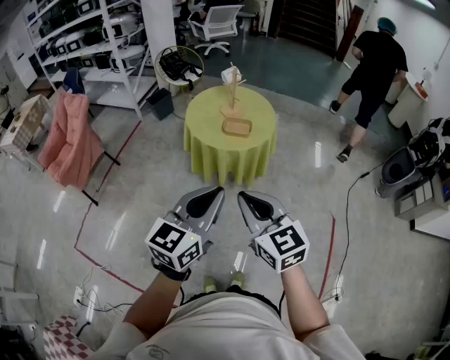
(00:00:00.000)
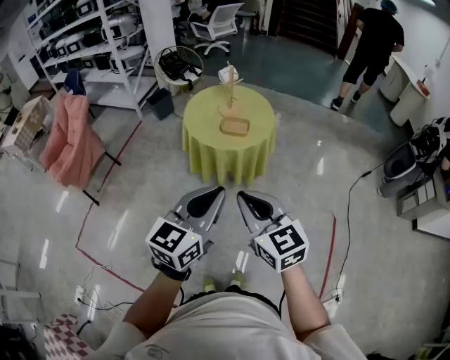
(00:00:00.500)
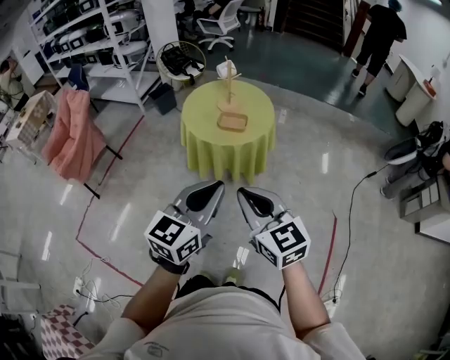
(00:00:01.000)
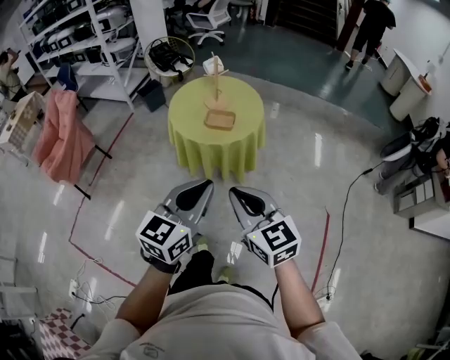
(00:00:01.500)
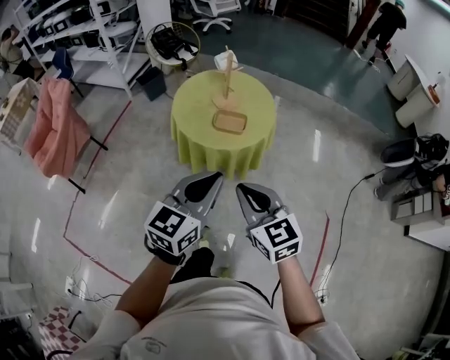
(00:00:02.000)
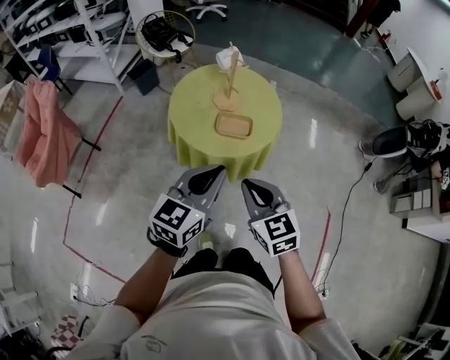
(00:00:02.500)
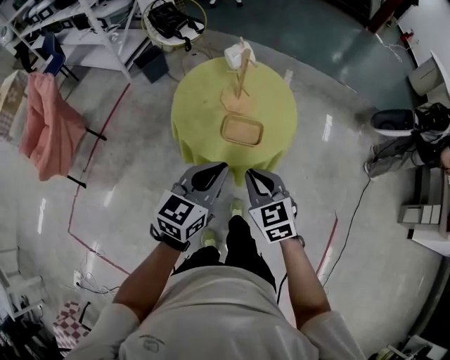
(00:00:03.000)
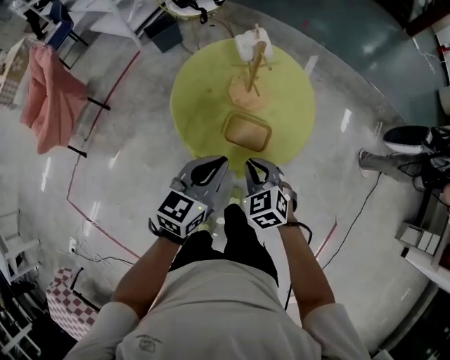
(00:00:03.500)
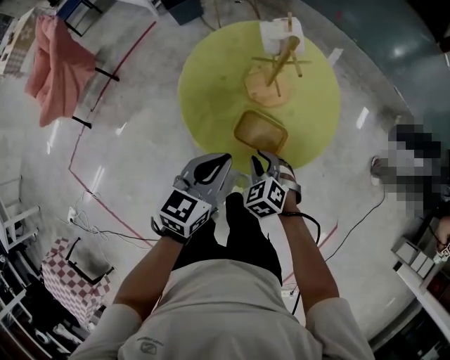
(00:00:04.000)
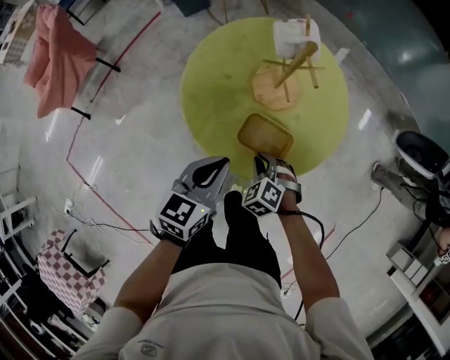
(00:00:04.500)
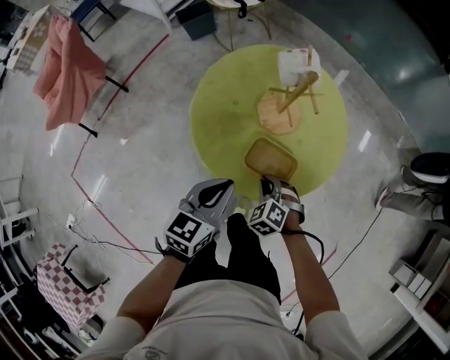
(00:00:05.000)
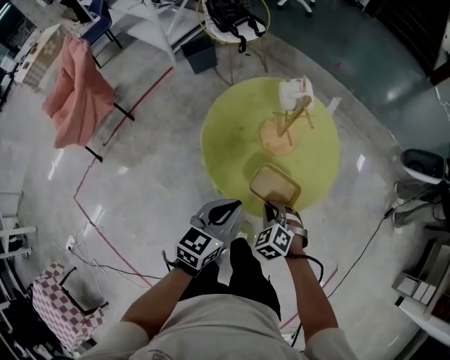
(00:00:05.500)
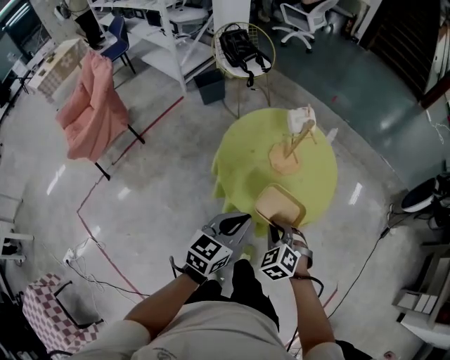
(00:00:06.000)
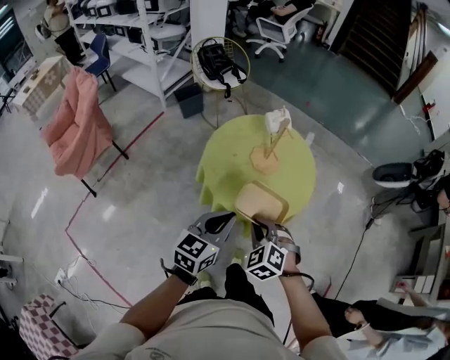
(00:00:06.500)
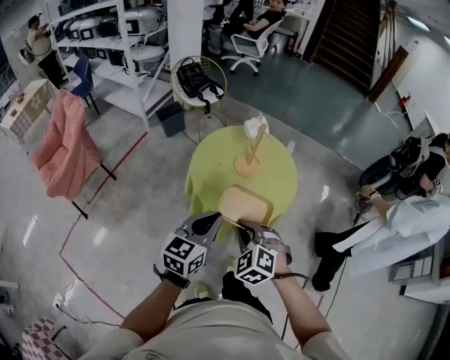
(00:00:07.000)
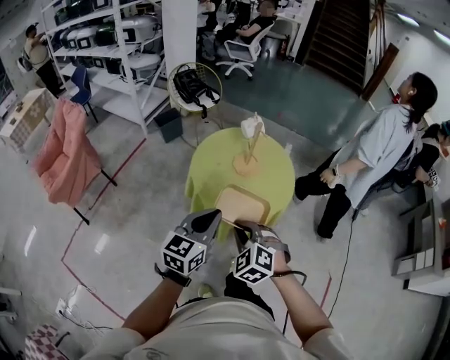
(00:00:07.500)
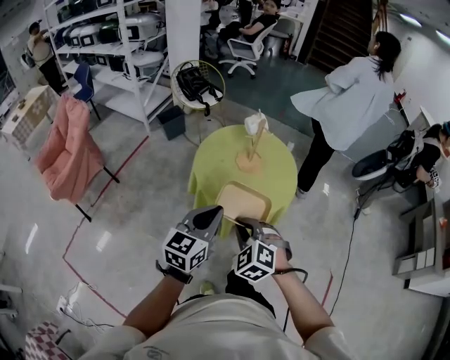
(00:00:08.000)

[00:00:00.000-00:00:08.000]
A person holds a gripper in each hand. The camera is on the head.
00:00:00.000 to 00:00:02.000: The left gripper shifts approximately 15 cm forward. Meanwhile the right gripper goes roughly 15 cm forward and downward.
00:00:02.000 to 00:00:04.000: The two grippers go approximately 40 cm forward and downward. The right gripper tips its fingers downward by approximately 40 degrees. Meanwhile the left gripper turns by about 20 degrees.
00:00:04.000 to 00:00:06.000: The left gripper shifts approximately 10 cm backward and upward. The right gripper moves upward and backward, approximately 15 cm.
00:00:06.000 to 00:00:08.000: The right gripper goes roughly 20 cm upward, backward and to the left. The left gripper goes about 15 cm upward and backward.

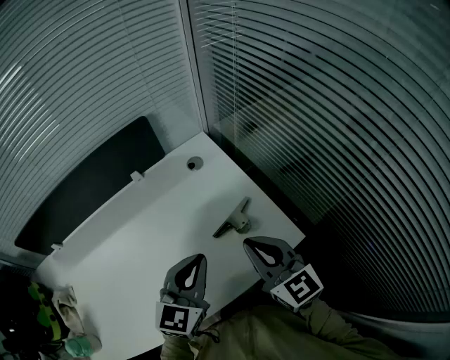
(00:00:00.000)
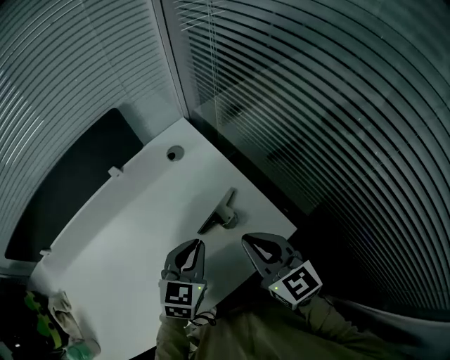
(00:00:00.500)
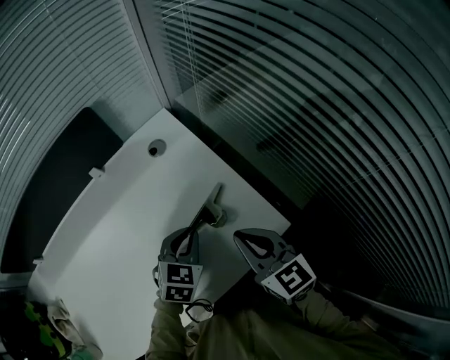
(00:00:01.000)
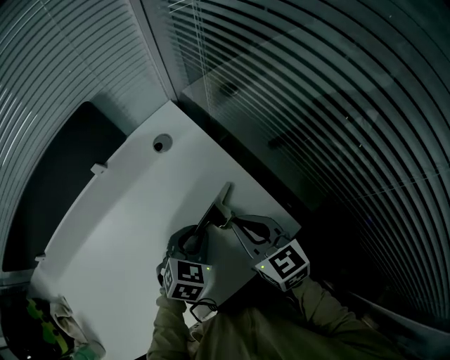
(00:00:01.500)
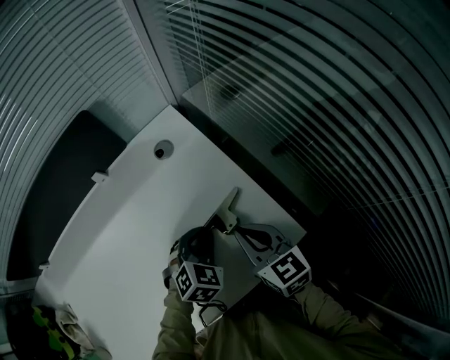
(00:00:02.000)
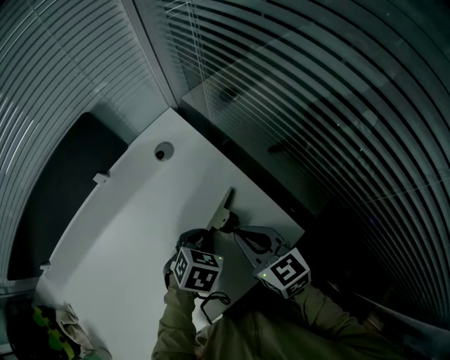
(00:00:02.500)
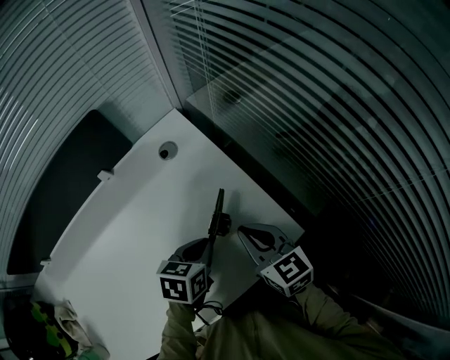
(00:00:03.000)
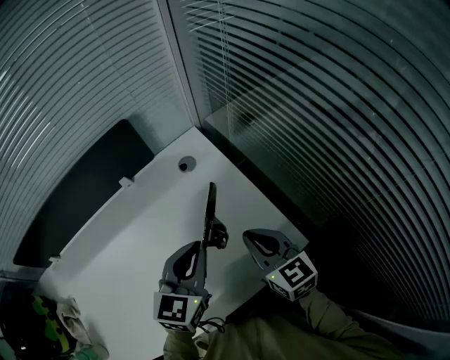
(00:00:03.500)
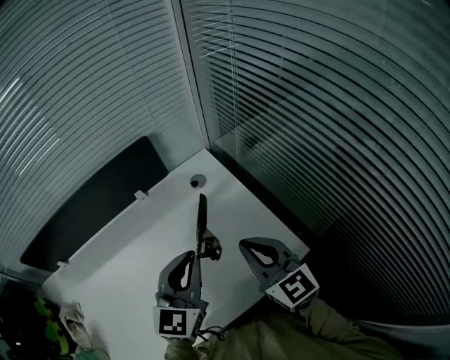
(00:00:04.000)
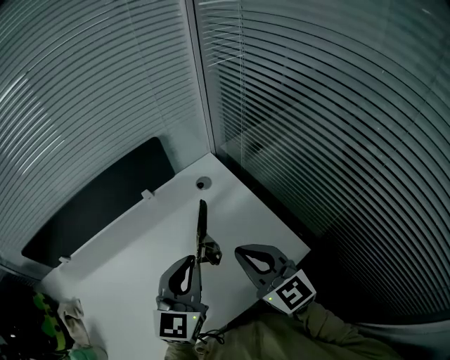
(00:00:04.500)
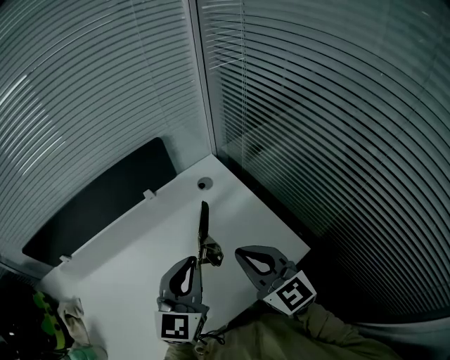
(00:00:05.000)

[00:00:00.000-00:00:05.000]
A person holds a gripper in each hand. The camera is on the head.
00:00:00.000 to 00:00:02.500: The grippers both shift downward and forward by approximately 20 cm. The left gripper points its fingers about 50 degrees further downward.
00:00:02.500 to 00:00:05.000: The right gripper travels upward, to the left and backward by some 20 cm, and rotates roughly 30 degrees. The left gripper shifts approximately 30 cm upward and to the left, and points its fingers about 60 degrees further upward.

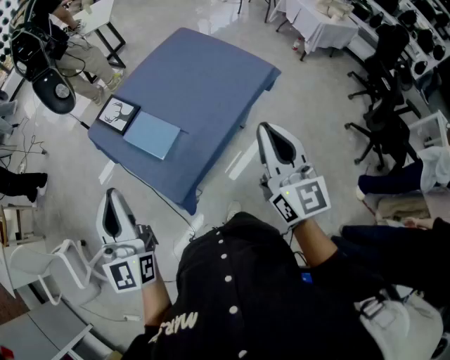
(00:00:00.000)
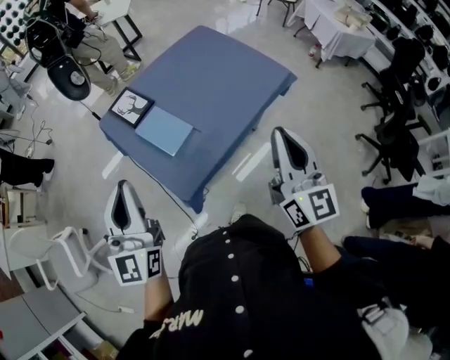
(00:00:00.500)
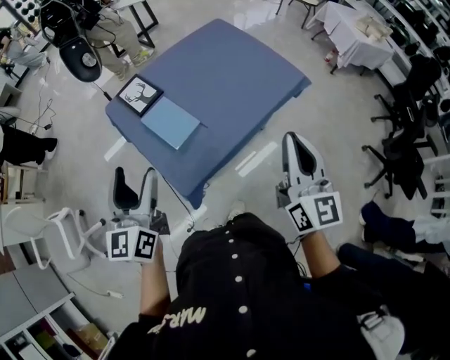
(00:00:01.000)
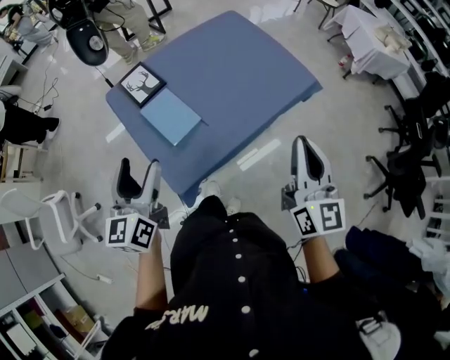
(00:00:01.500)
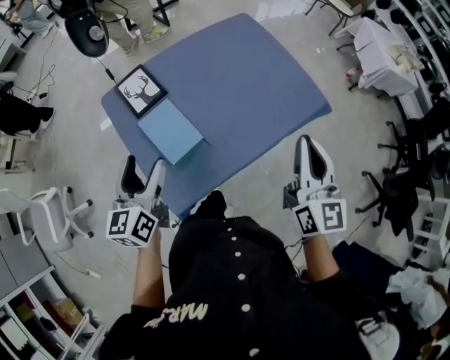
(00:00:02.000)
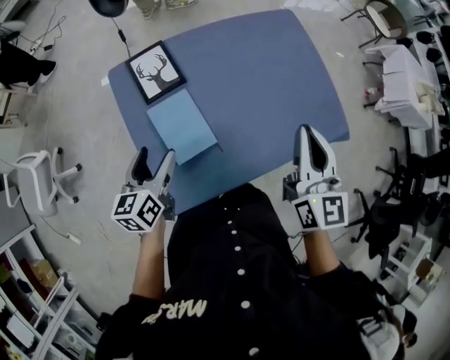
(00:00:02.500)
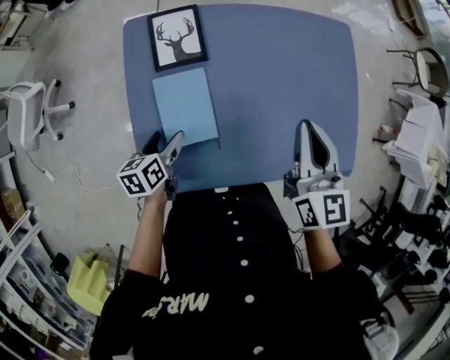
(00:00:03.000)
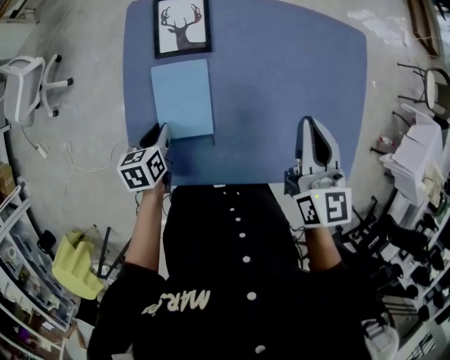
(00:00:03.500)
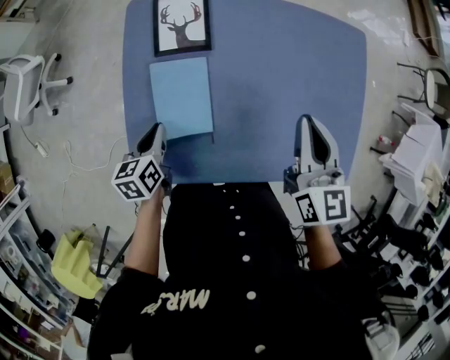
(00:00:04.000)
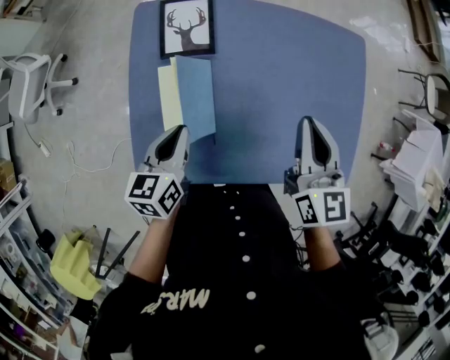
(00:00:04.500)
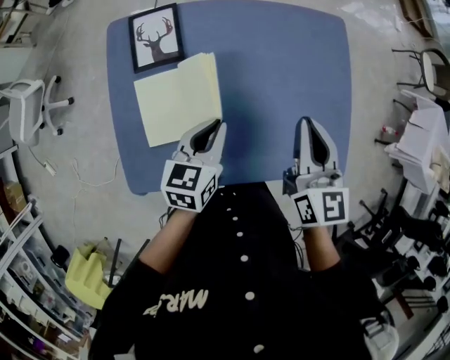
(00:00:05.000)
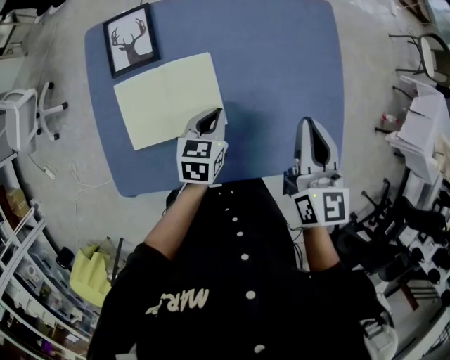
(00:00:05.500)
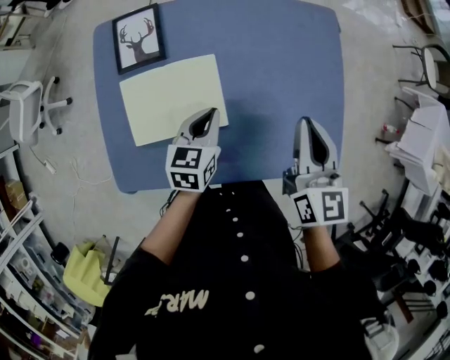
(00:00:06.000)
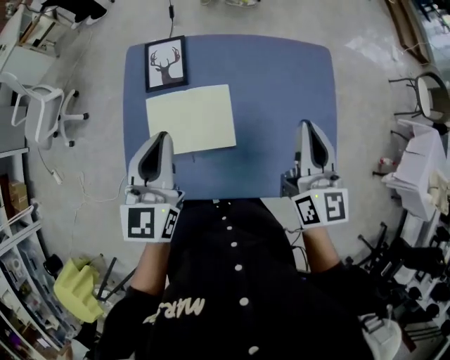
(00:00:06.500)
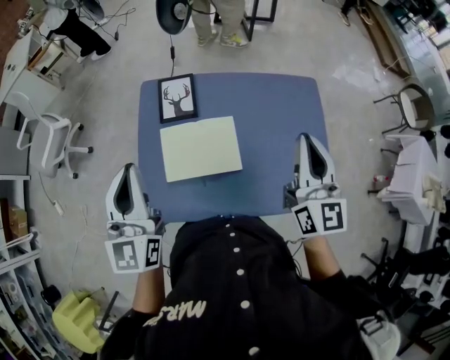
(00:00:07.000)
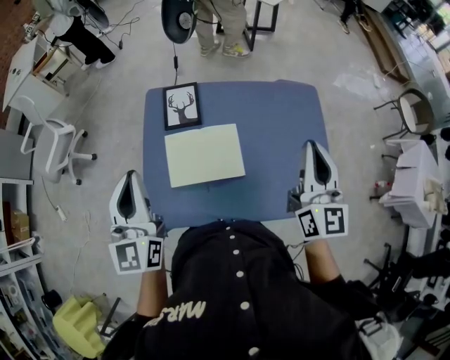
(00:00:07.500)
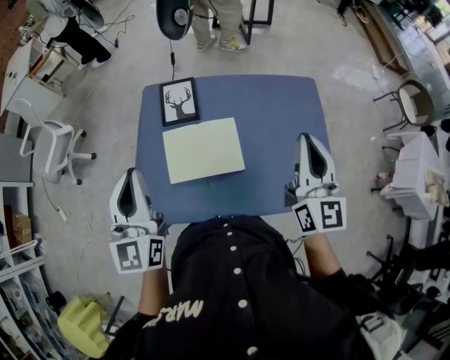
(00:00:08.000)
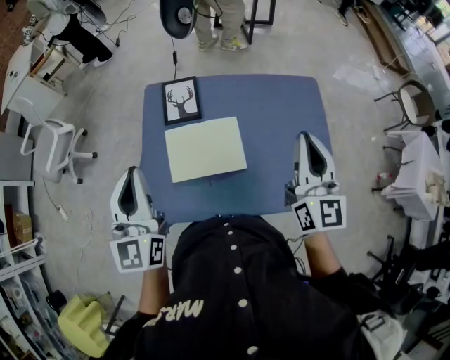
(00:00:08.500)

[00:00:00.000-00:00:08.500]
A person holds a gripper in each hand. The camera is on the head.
00:00:00.000 to 00:00:02.000: The right gripper is displaced forward by approximately 20 cm; the left gripper shifts approximately 25 cm forward and downward, rotates approximately 30 degrees, and opens.
00:00:02.000 to 00:00:04.000: The left gripper shifts about 25 cm downward, angles its fingers downward, by about 30 degrees, and closes. The right gripper shifts by some 35 cm, and swivels some 40 degrees.
00:00:04.000 to 00:00:06.500: The left gripper moves upward and to the right, some 30 cm, and angles its fingers upward, by roughly 30 degrees; the right gripper goes about 15 cm to the right and upward.
00:00:06.500 to 00:00:08.500: The left gripper is displaced to the left, upward and backward by about 20 cm, while the right gripper shifts about 10 cm upward and to the left.

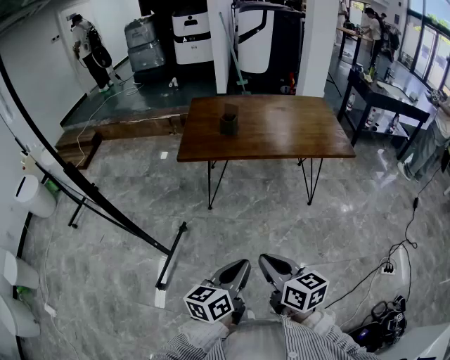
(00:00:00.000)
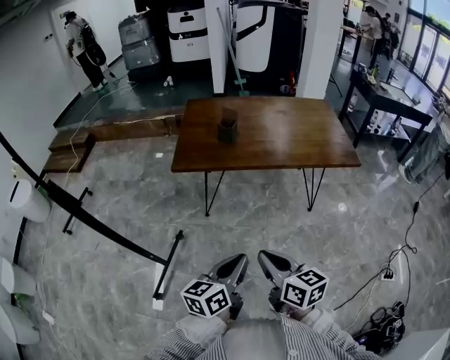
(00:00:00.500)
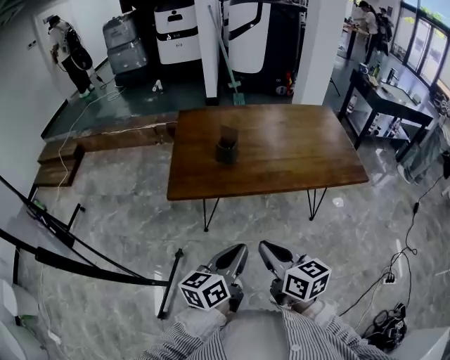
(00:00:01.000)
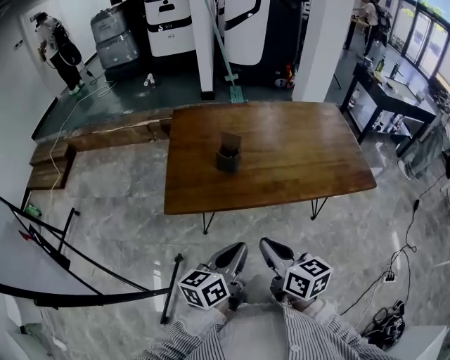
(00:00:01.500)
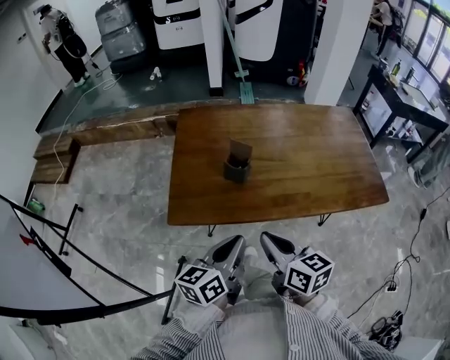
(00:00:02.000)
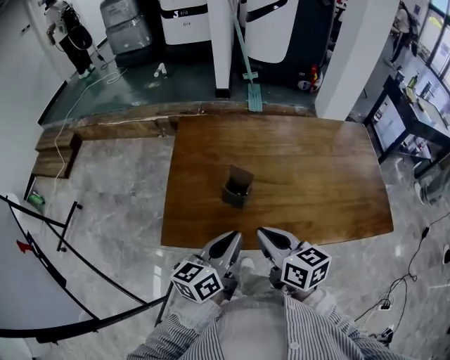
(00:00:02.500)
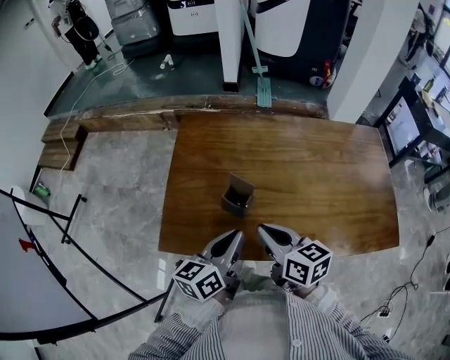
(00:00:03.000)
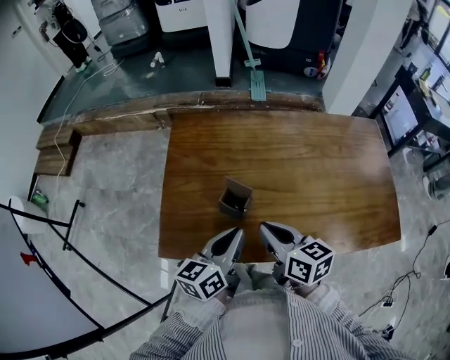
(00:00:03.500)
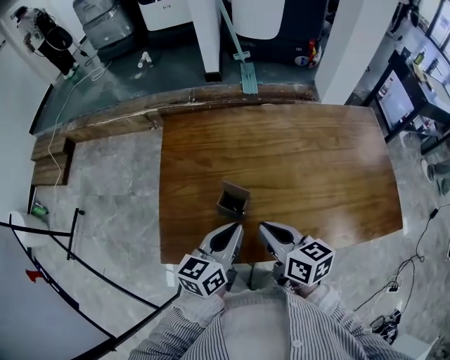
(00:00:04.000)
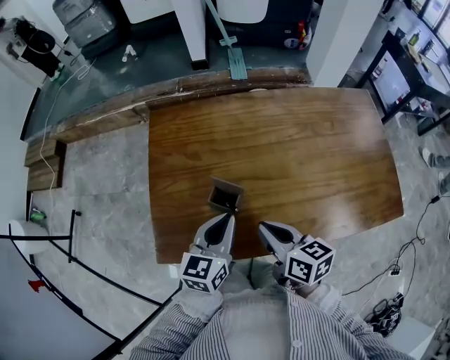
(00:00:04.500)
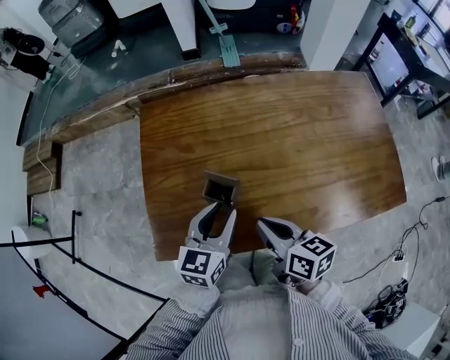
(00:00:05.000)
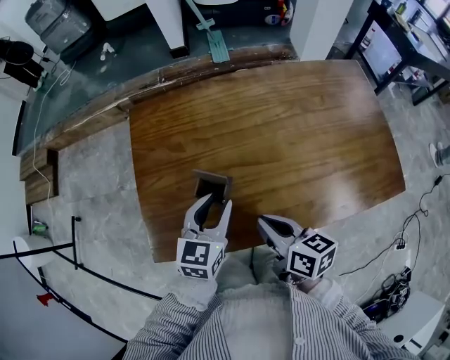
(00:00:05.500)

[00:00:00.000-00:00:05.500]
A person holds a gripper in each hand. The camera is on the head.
00:00:00.000 to 00:00:02.000: Both grippers are carried forward, roughly 50 cm.
00:00:02.000 to 00:00:03.500: The two grippers go about 20 cm forward.
00:00:03.500 to 00:00:05.500: The right gripper ends up roughly 5 cm from where it was; the left gripper goes approximately 5 cm forward, swivels about 30 degrees, and opens its fingers.
